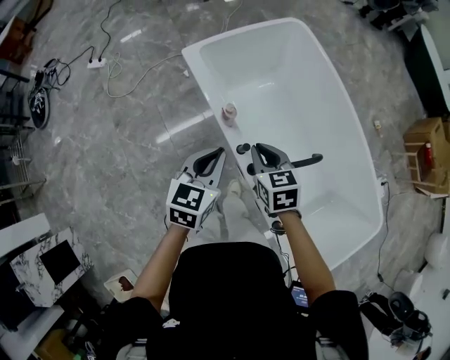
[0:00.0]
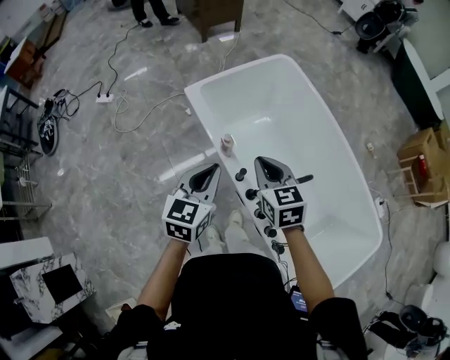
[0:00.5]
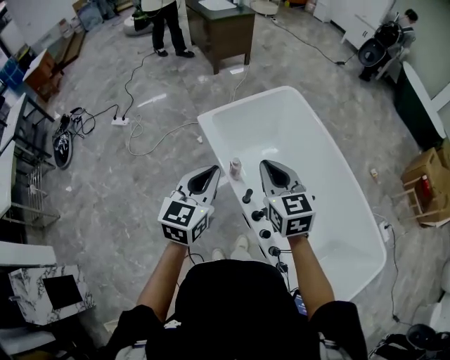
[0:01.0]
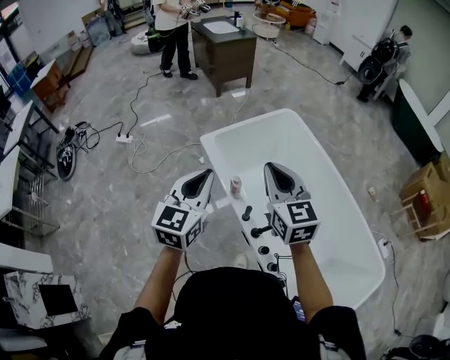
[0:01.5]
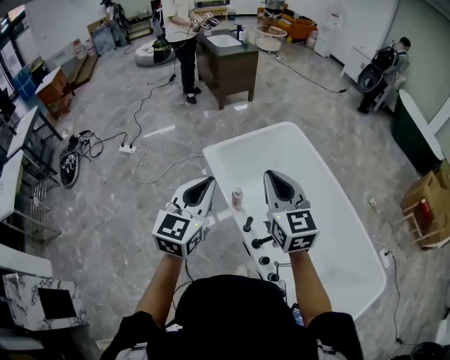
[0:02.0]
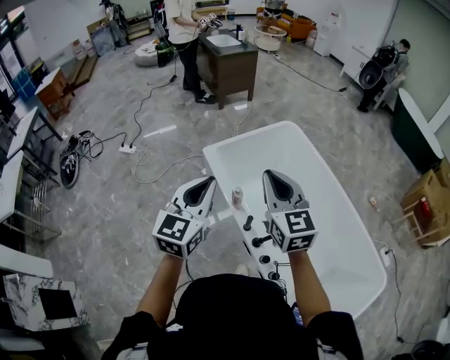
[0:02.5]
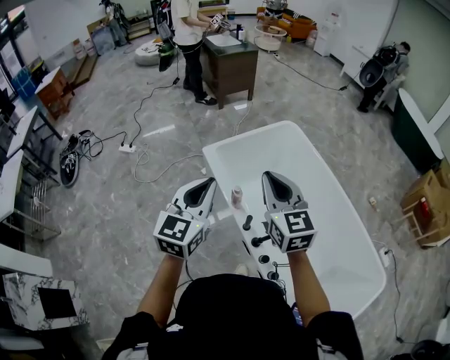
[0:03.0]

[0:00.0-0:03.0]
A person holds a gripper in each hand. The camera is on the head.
0:00.0 to 0:01.5: Both grippers travel together upward, approximately 25 cm. The right gripper points its fingers about 30 degrees further upward, while the left gripper swivels roughly 20 degrees.
0:01.5 to 0:03.0: The grippers move only a little.

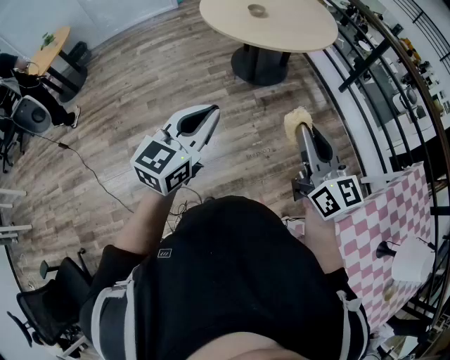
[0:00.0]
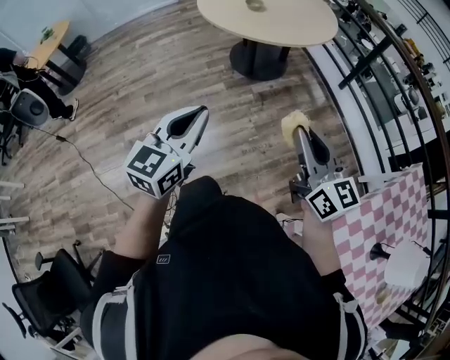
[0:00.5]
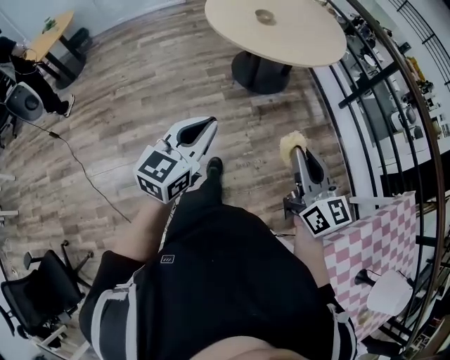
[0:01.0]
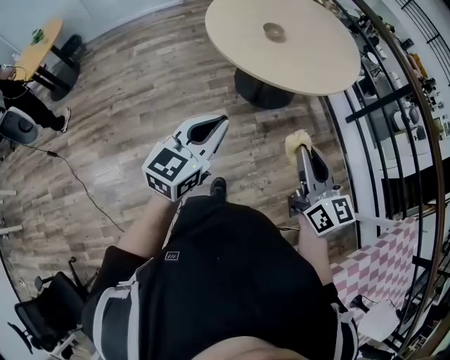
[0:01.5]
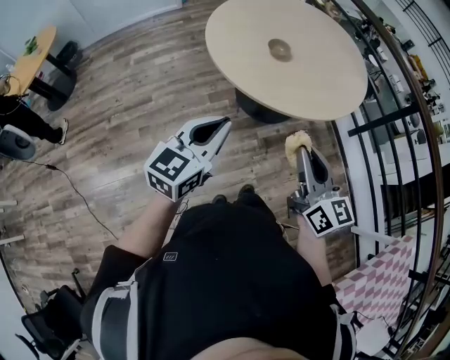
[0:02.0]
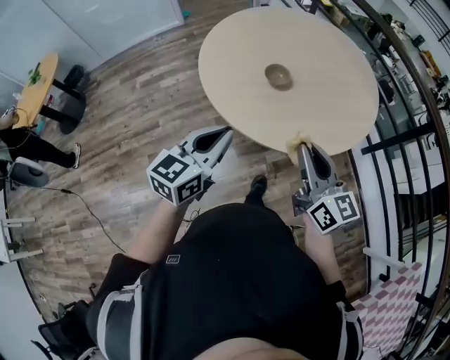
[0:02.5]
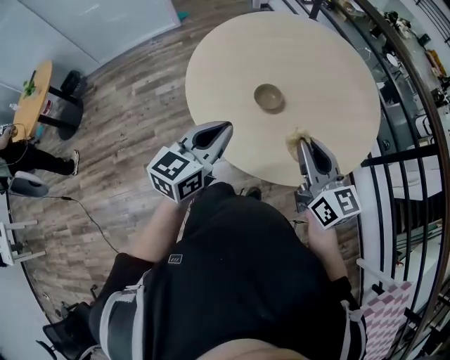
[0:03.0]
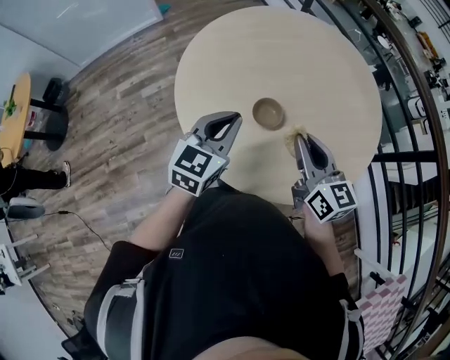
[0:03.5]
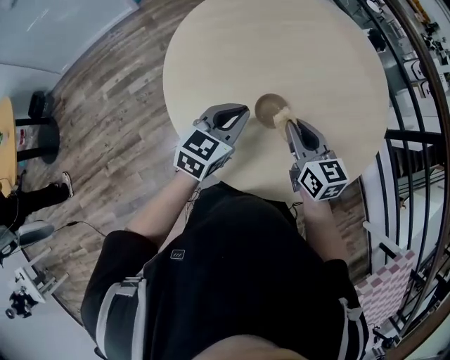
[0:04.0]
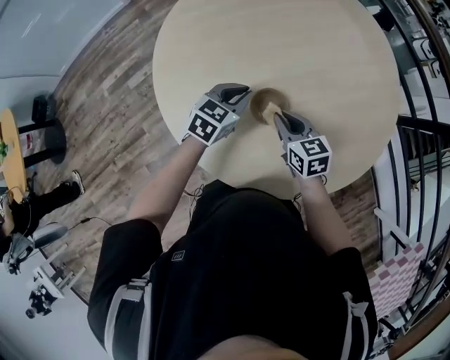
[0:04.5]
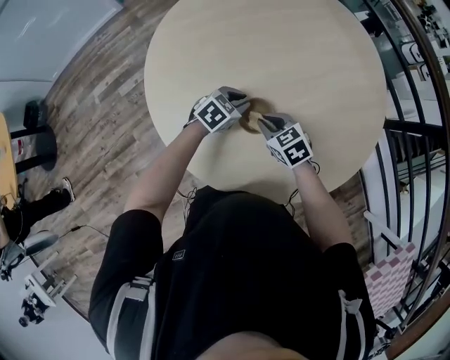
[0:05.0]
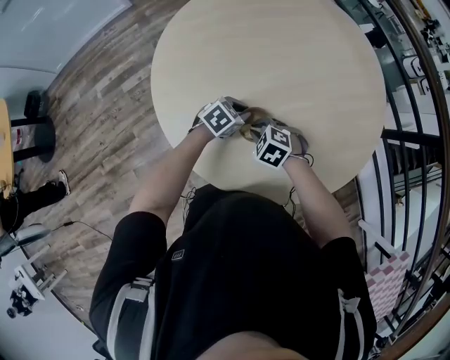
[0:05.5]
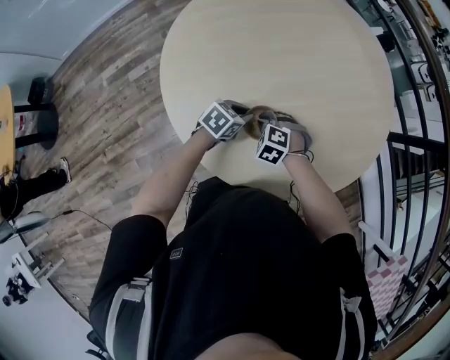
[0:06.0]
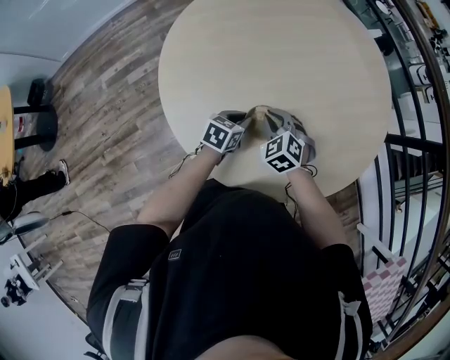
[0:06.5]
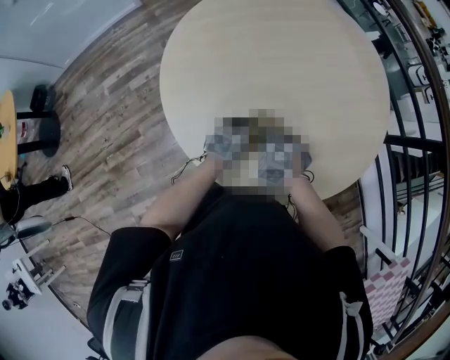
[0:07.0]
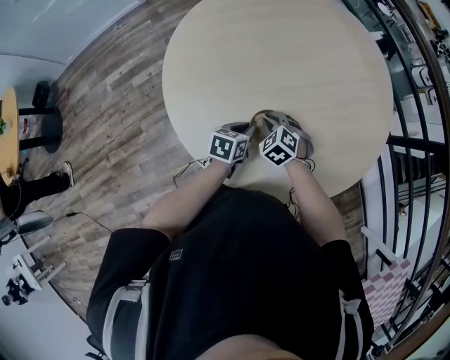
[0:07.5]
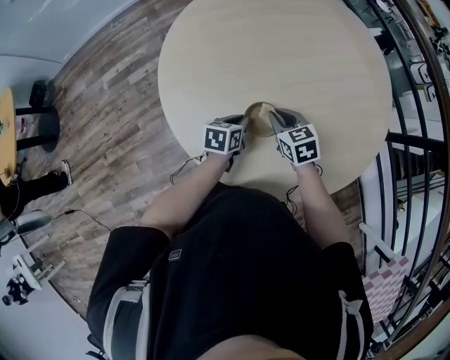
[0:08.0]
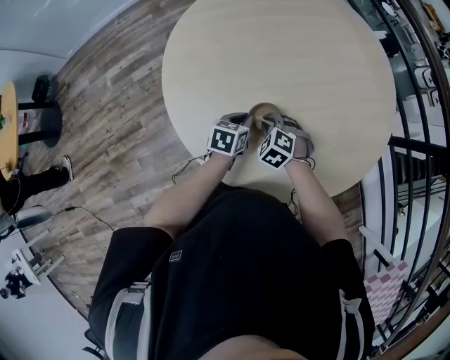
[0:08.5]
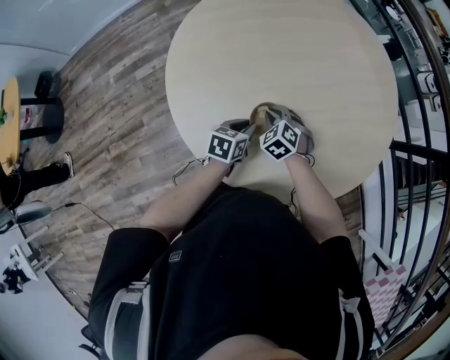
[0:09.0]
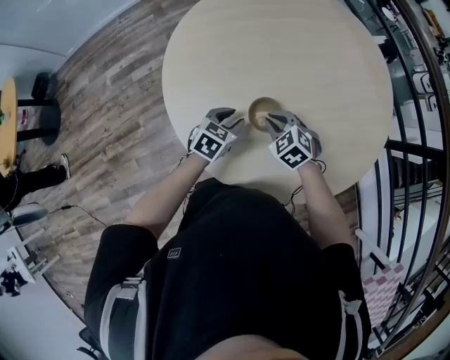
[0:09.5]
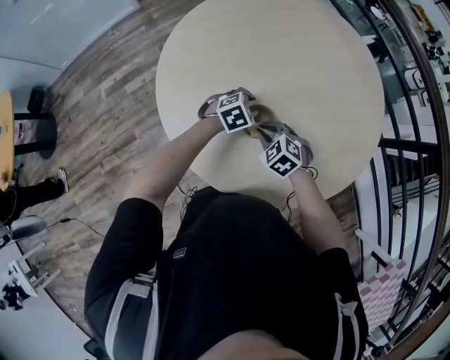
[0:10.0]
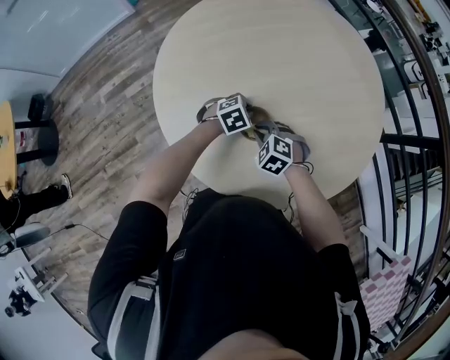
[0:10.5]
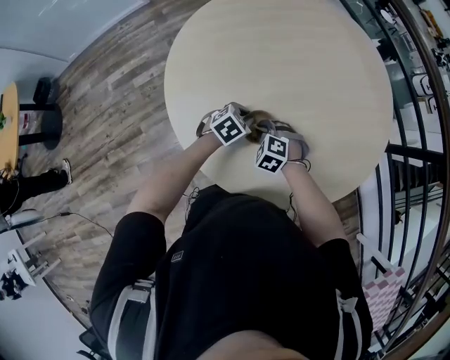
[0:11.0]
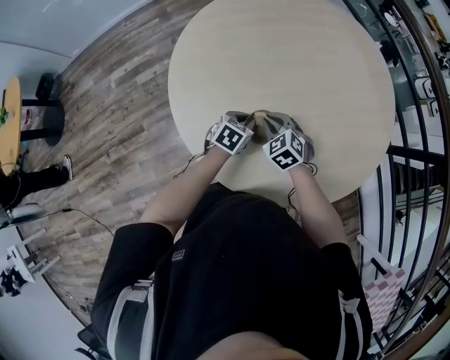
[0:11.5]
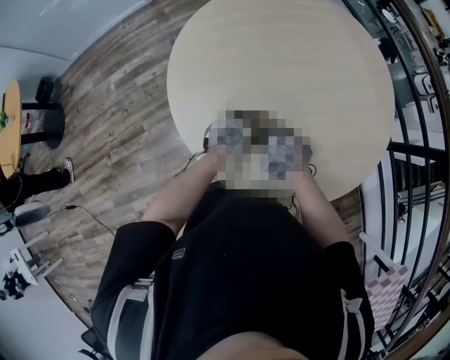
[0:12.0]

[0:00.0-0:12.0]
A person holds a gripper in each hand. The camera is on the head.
0:00.0 to 0:02.0: The two grippers go approximately 35 cm forward.
0:02.0 to 0:04.0: The two grippers travel together, forward, about 50 cm. The left gripper swivels approximately 20 degrees. Meanwhile the right gripper swivels some 20 degrees.
0:04.0 to 0:06.0: Both grippers move downward, roughly 20 cm. The right gripper tilts its fingers roughly 50 degrees downward. The left gripper rotates approximately 30 degrees.
0:06.0 to 0:08.0: The right gripper swings up and down, some 10 cm each way, with 2 reversals, and twists roughly 50 degrees clockwise, seen from behind. The left gripper rotates roughly 30 degrees.
0:08.0 to 0:10.0: The left gripper is displaced forward by about 5 cm, rotates around the line of its fingers by roughly 60 degrees, clockwise from behind, and opens its fingers, while the right gripper swivels approximately 30 degrees.
0:10.0 to 0:12.0: The left gripper goes some 10 cm to the left and backward, changes its angle by about 40 degrees, and closes its fingers. Meanwhile the right gripper changes place by some 5 cm.

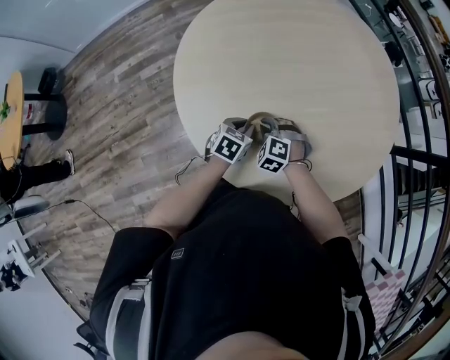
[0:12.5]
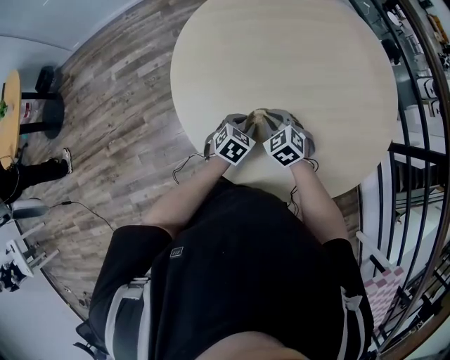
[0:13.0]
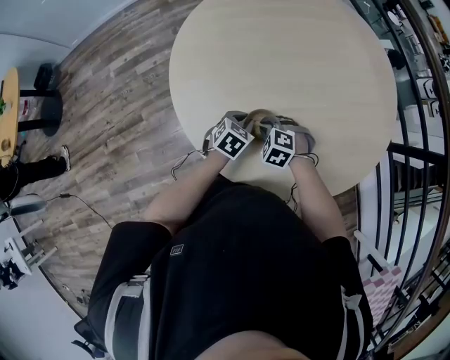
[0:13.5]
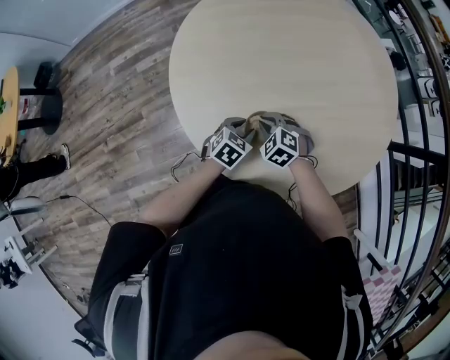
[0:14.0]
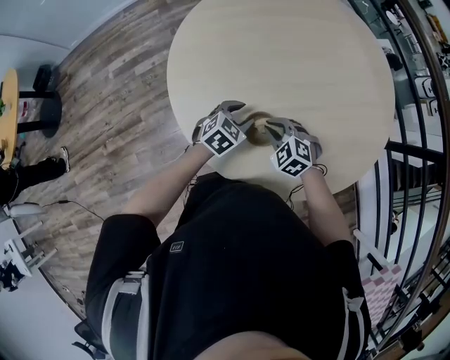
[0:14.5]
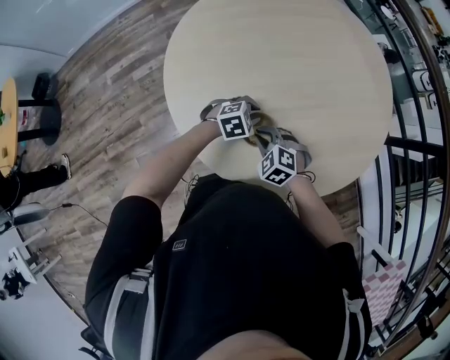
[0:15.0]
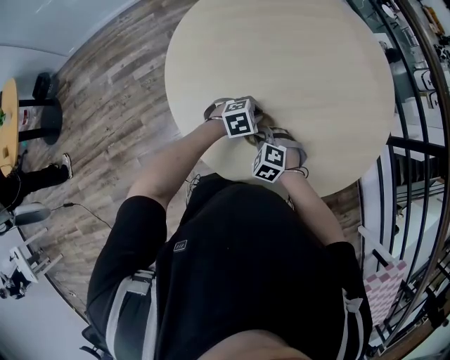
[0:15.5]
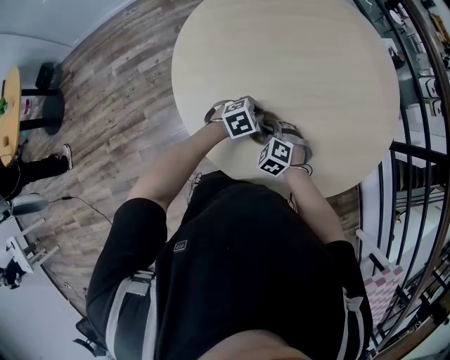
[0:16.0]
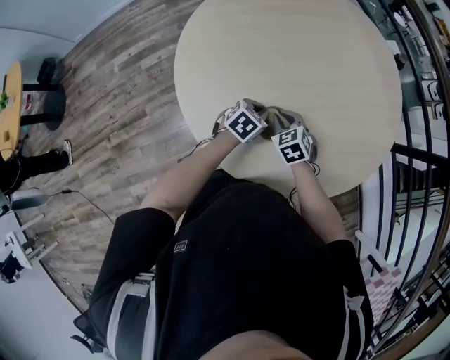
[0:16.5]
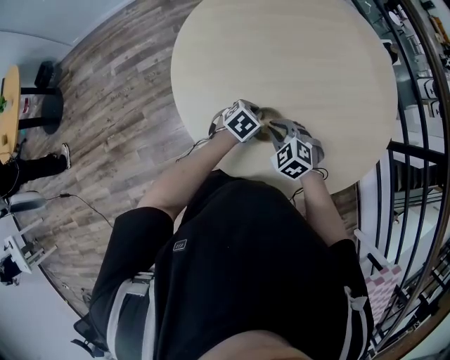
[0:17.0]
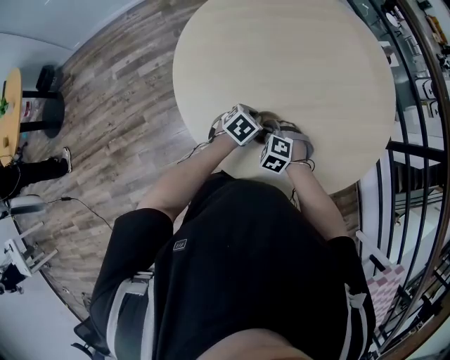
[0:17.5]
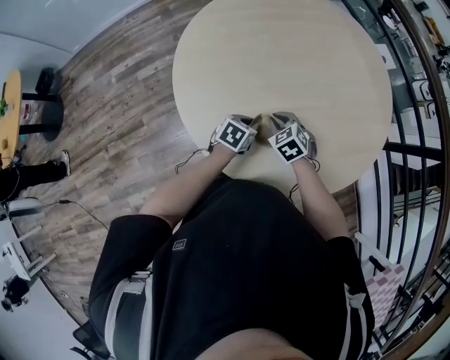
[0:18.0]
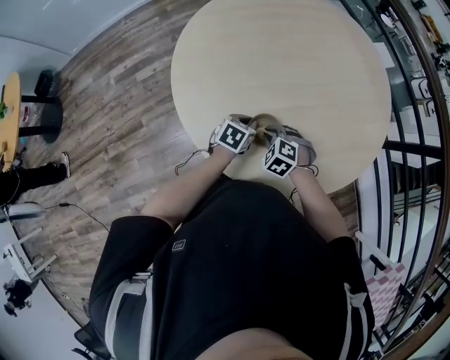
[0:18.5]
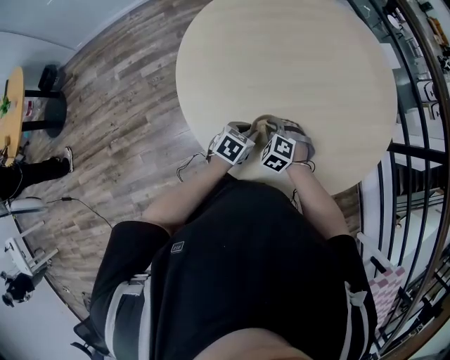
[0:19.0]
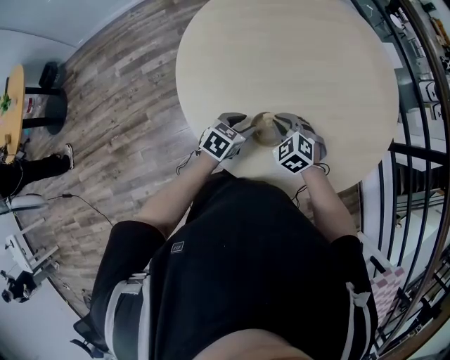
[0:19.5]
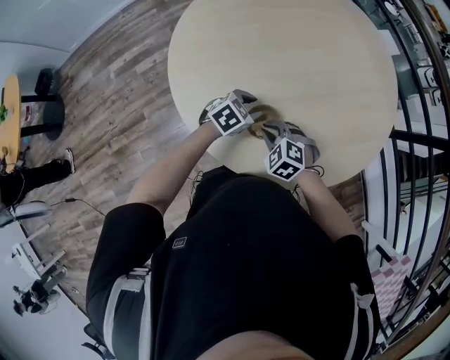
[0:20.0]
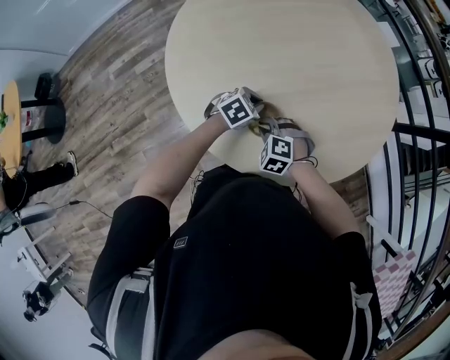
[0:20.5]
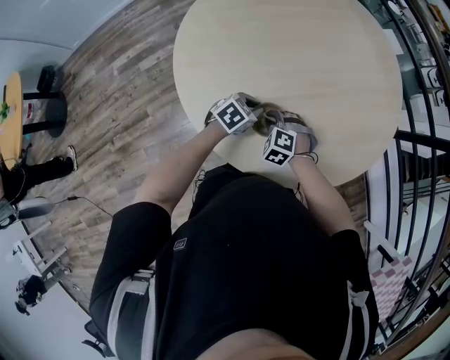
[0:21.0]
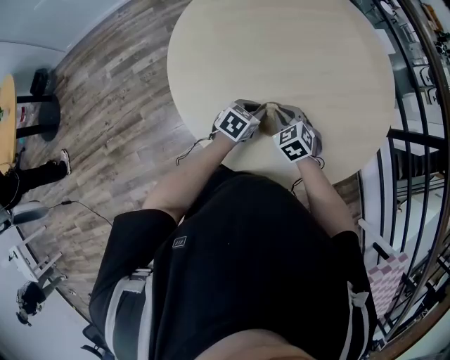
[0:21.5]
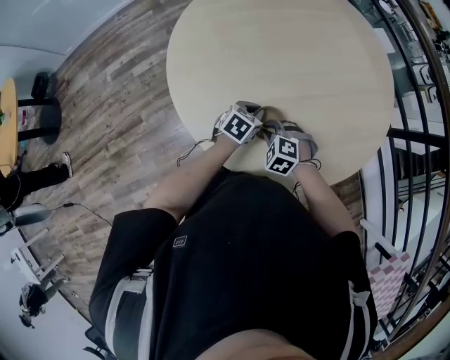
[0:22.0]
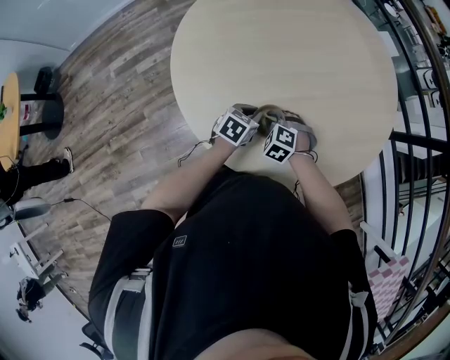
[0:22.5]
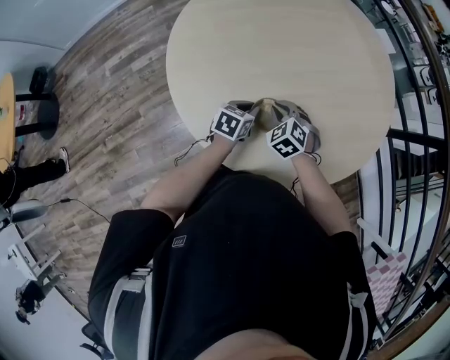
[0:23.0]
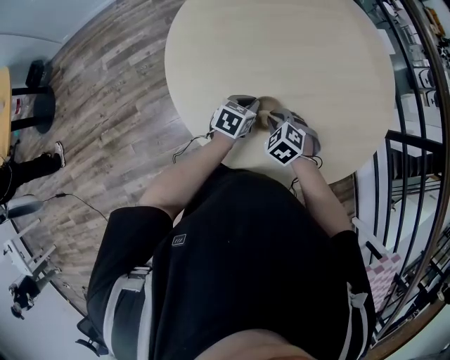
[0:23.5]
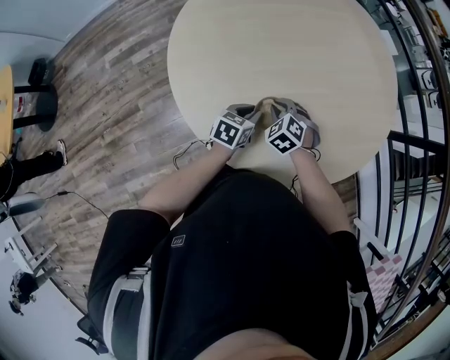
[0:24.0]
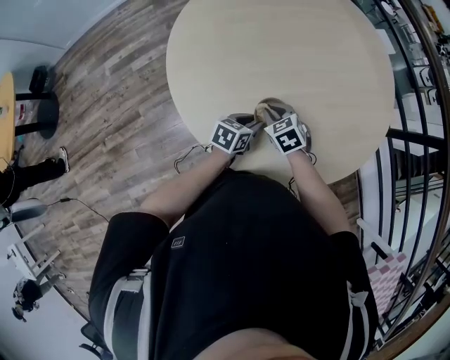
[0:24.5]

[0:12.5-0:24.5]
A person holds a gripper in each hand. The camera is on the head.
0:12.5 to 0:14.5: The right gripper goes up and down, approximately 5 cm each way, reversing 2 times. Meanwhile the left gripper turns by approximately 20 degrees, and opens its fingers.
0:14.5 to 0:16.5: The right gripper turns by about 30 degrees. The left gripper closes its fingers.
0:16.5 to 0:18.5: The right gripper swings forward and backward, approximately 5 cm each way, with 2 reversals, and rotates some 30 degrees.
0:18.5 to 0:20.5: The left gripper turns by about 30 degrees, and opens, then closes again.
0:20.5 to 0:22.5: The left gripper swivels some 30 degrees, while the right gripper swings forward and backward, some 10 cm each way, with 2 reversals.
0:22.5 to 0:24.5: The right gripper swivels some 40 degrees.
